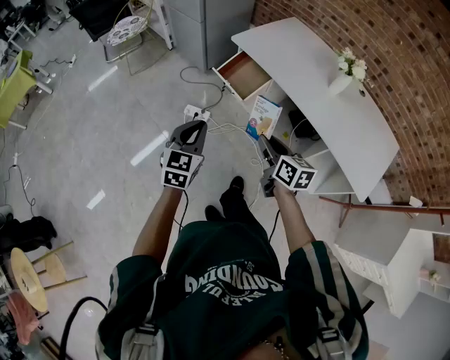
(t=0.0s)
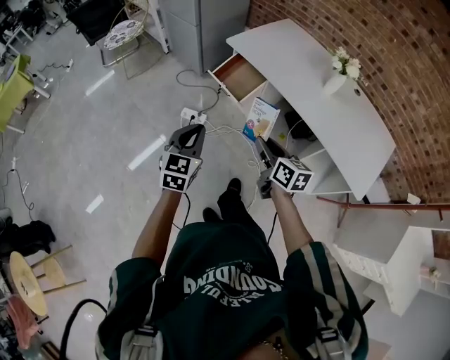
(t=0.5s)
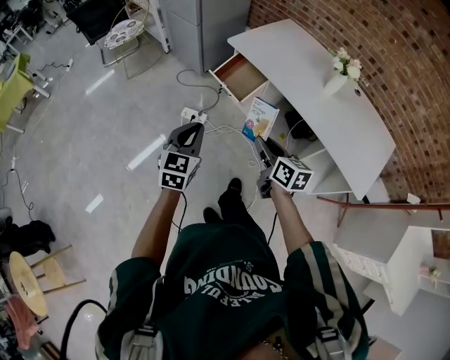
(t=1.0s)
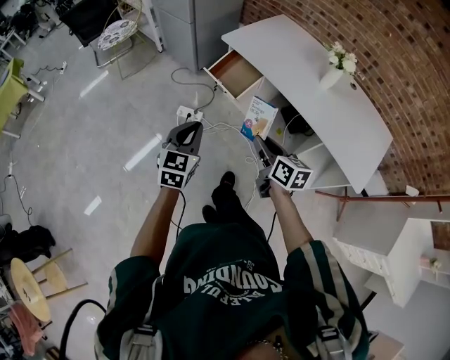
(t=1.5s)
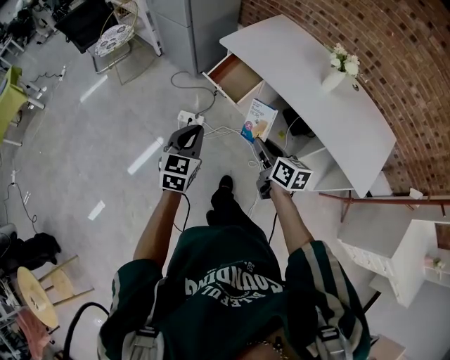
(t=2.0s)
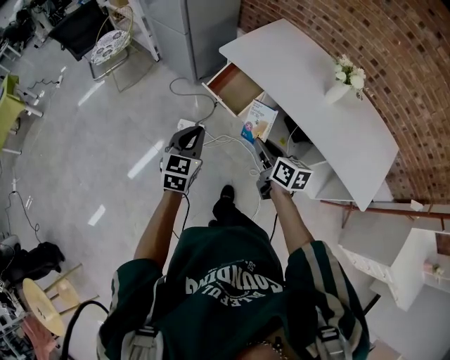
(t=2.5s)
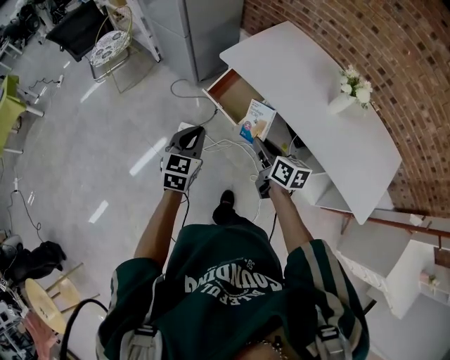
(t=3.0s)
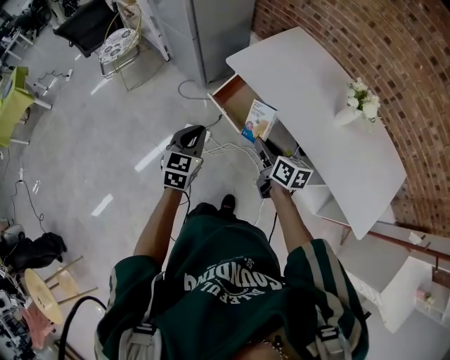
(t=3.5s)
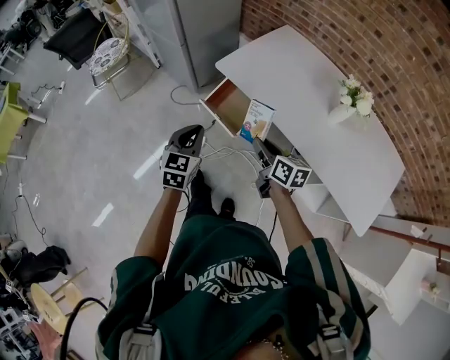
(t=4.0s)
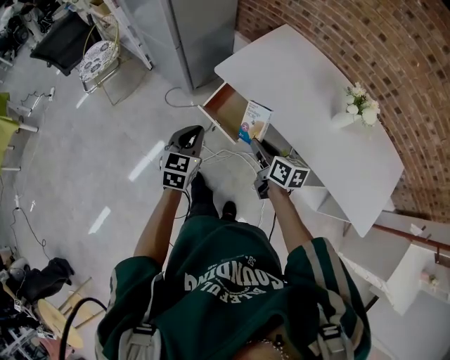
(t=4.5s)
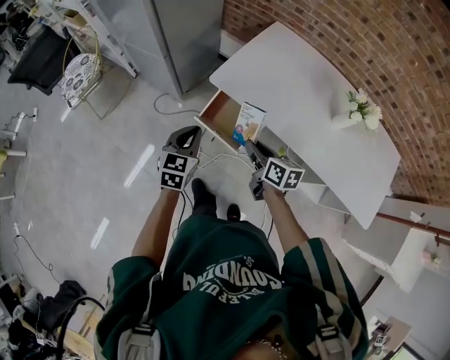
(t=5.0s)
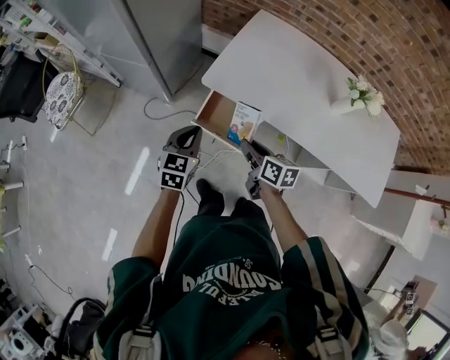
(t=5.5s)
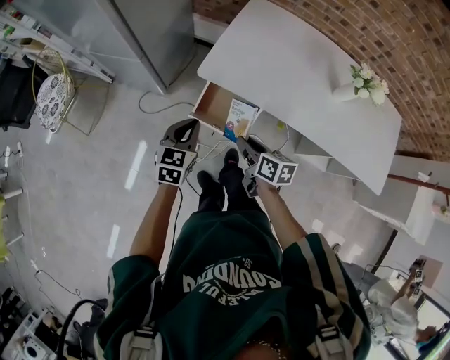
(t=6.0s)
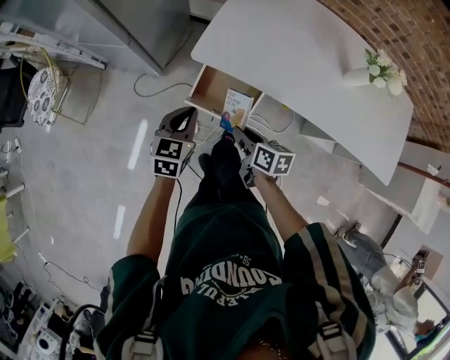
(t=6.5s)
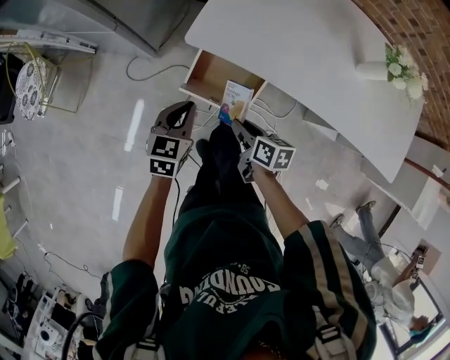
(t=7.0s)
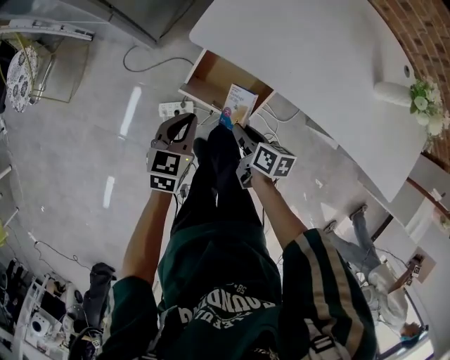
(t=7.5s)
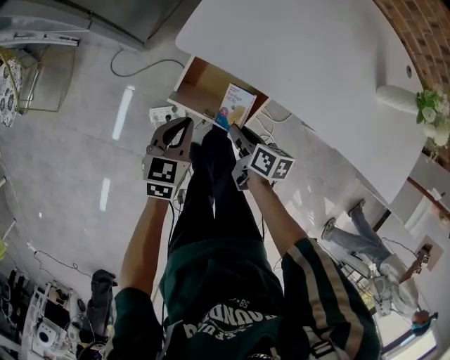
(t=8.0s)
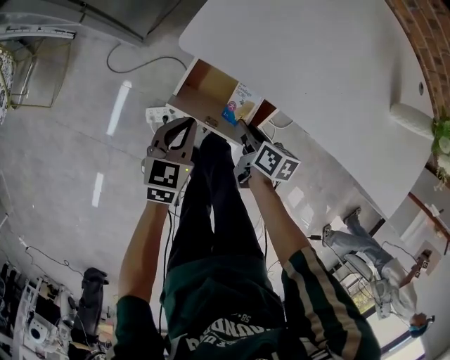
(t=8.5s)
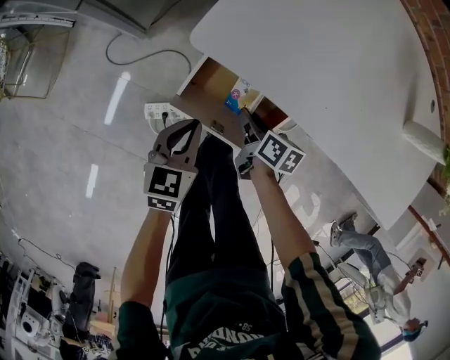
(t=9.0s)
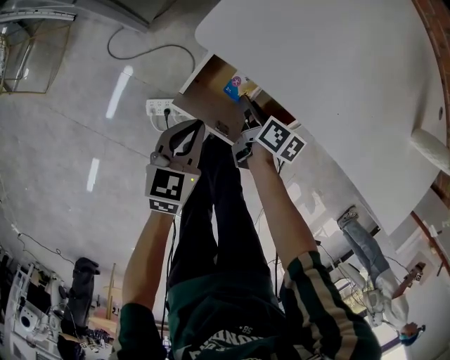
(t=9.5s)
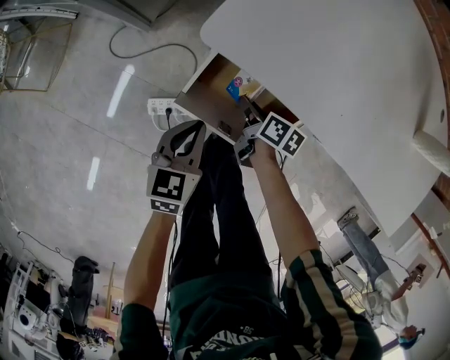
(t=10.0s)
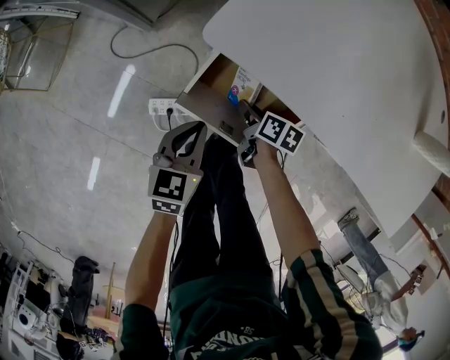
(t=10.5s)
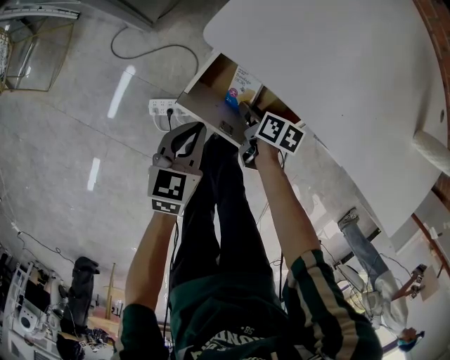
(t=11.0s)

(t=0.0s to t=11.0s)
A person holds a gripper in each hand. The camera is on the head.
t=0.0s - t=2.0s: The grippers move only a little.
t=2.0s - t=3.5s: The two grippers go about 20 cm forward.
t=3.5s - t=5.5s: The left gripper travels forward by some 20 cm, and rotates about 20 degrees, while the right gripper is displaced forward, to the left and downward by approximately 20 cm, and changes its angle by some 20 degrees.
t=5.5s - t=7.5s: Both grippers move downward, some 20 cm.
t=7.5s - t=9.0s: Both grippers move downward, some 10 cm.
t=9.0s - t=11.0s: The right gripper moves downward, about 5 cm.

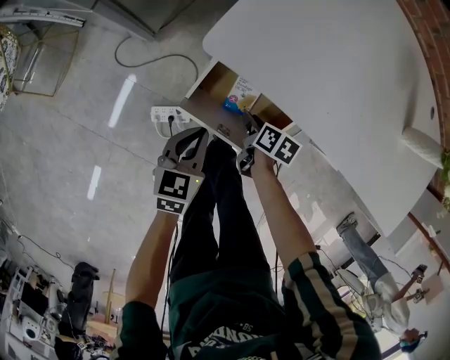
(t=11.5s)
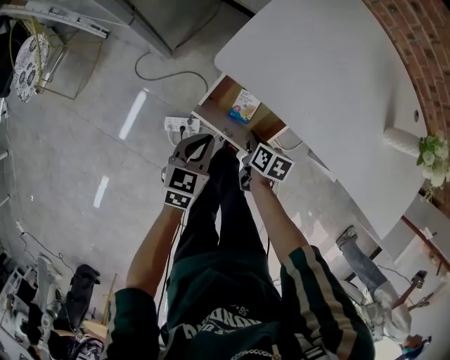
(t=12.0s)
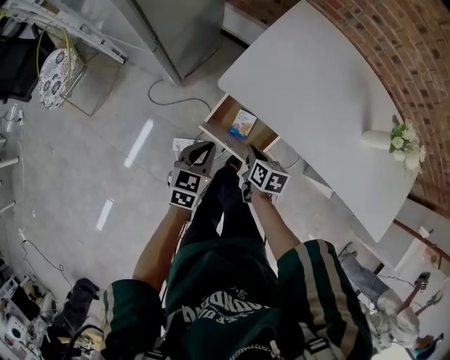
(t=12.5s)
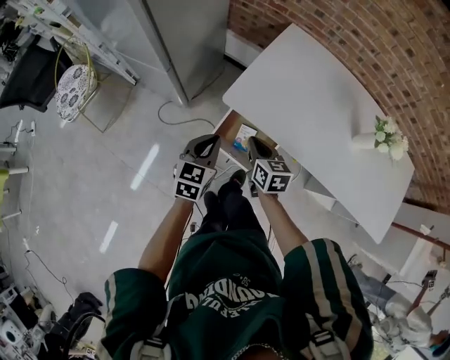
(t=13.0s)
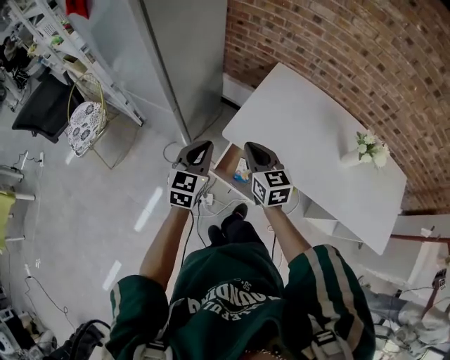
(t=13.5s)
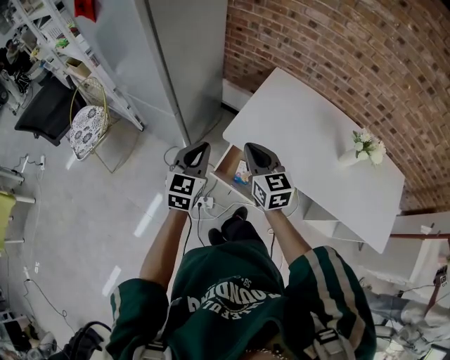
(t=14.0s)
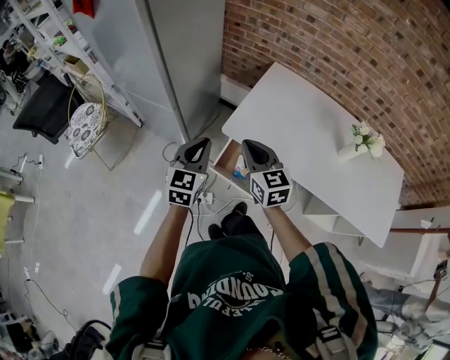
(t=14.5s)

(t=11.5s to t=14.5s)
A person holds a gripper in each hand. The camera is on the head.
t=11.5s - t=13.0s: The two grippers go roughly 30 cm upward. The right gripper turns by roughly 50 degrees, and closes.
t=13.0s - t=14.5s: The grippers both shift upward by roughly 15 cm. The right gripper rotates some 30 degrees.

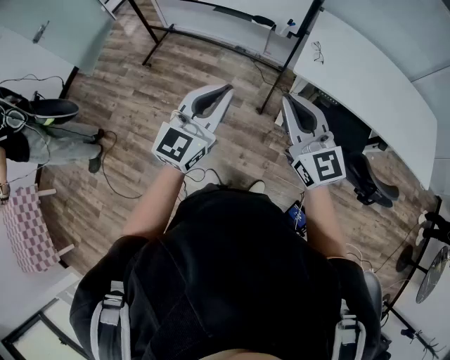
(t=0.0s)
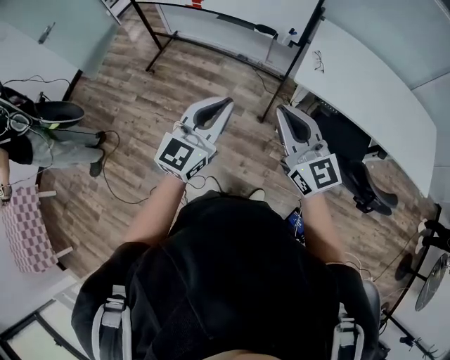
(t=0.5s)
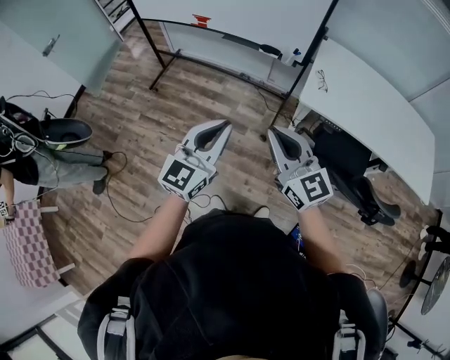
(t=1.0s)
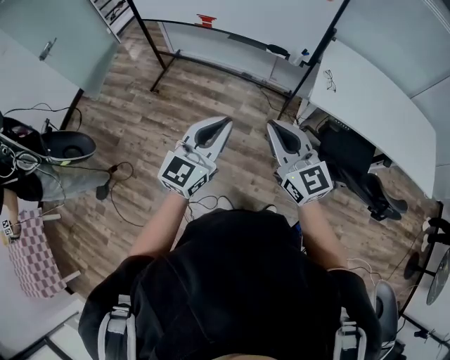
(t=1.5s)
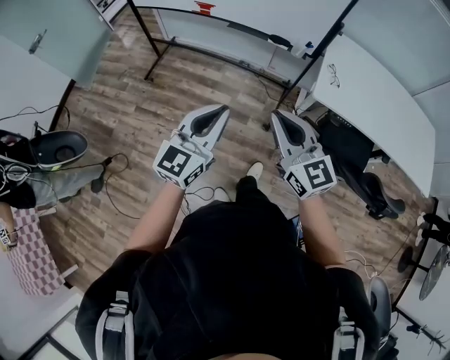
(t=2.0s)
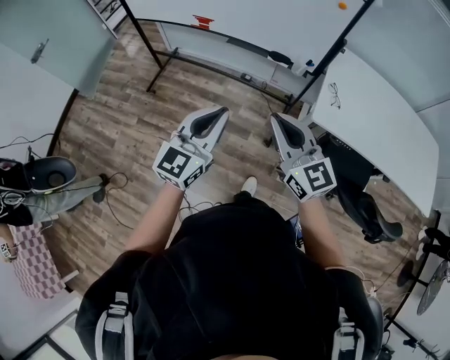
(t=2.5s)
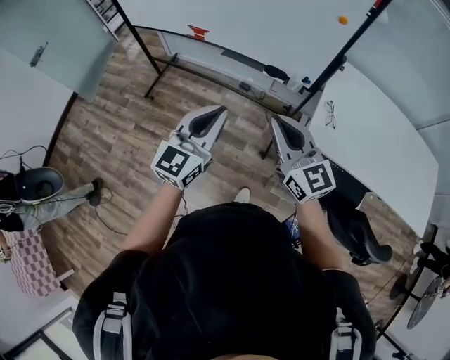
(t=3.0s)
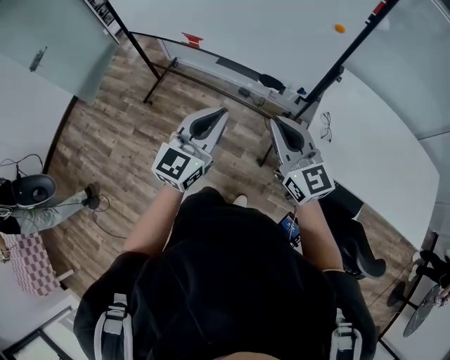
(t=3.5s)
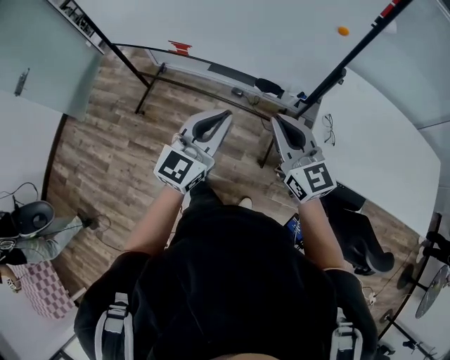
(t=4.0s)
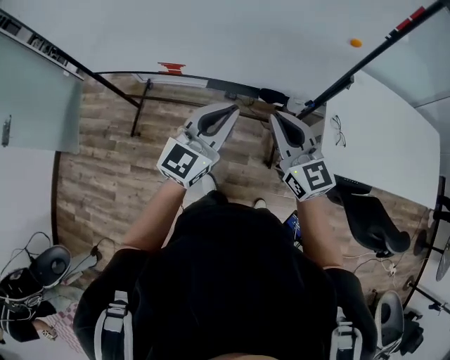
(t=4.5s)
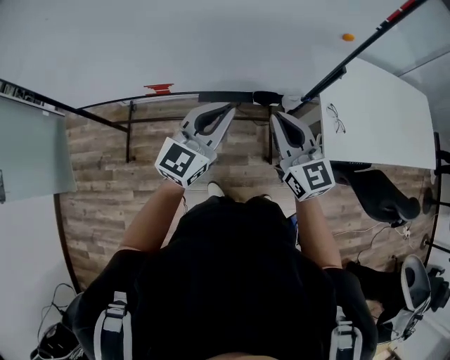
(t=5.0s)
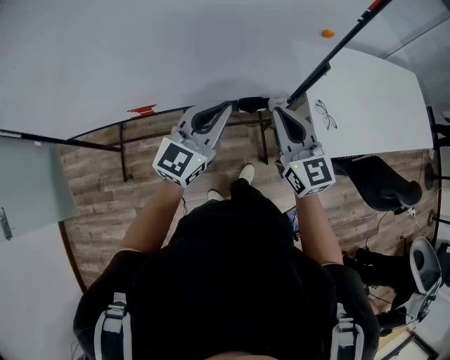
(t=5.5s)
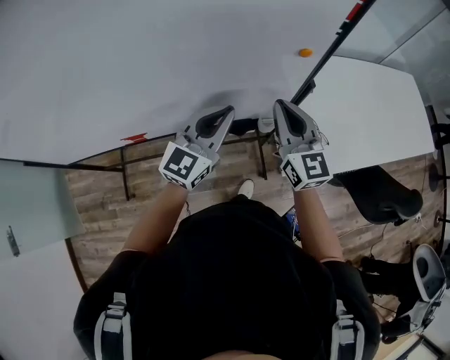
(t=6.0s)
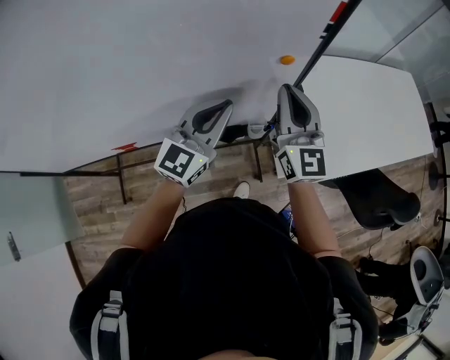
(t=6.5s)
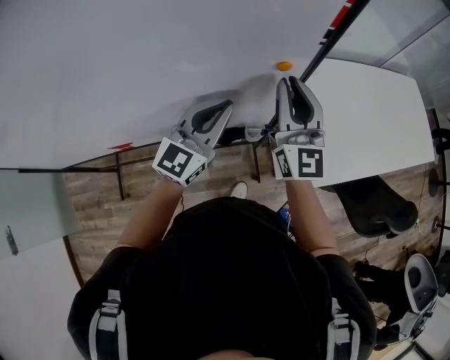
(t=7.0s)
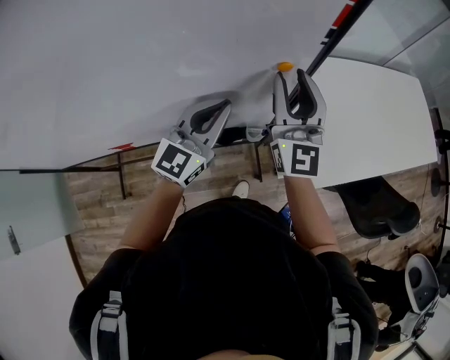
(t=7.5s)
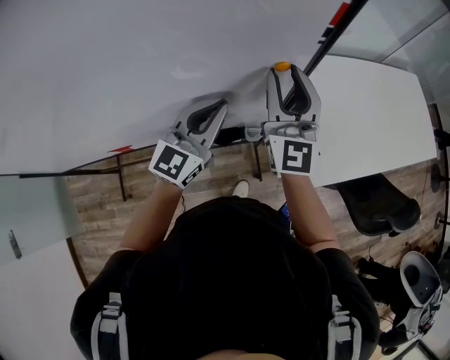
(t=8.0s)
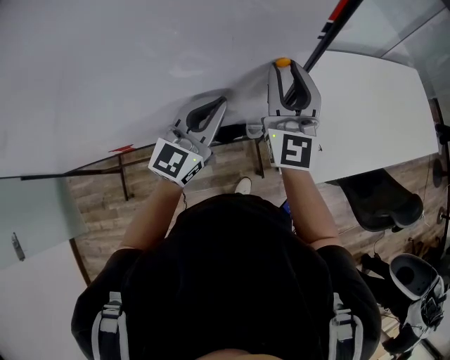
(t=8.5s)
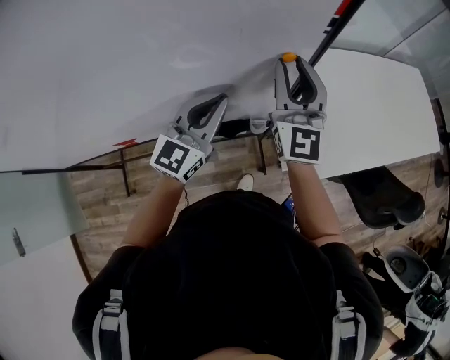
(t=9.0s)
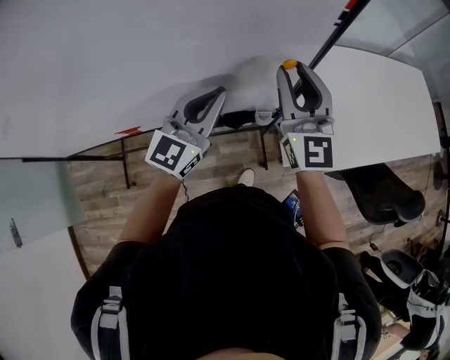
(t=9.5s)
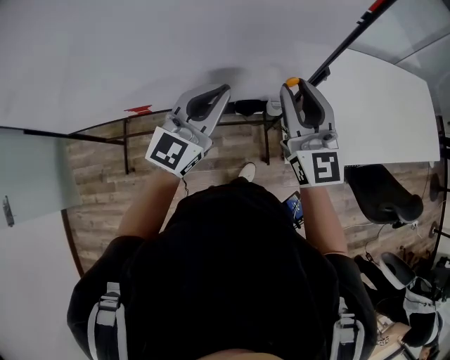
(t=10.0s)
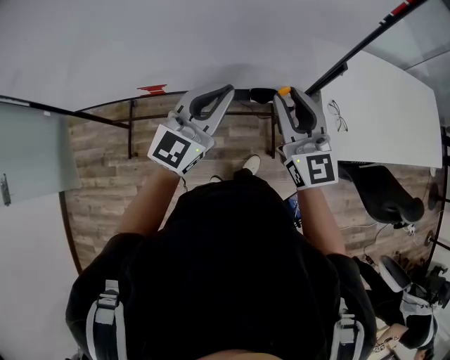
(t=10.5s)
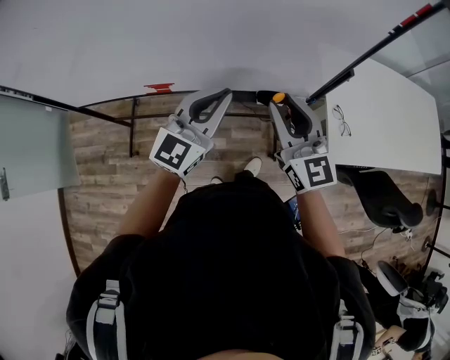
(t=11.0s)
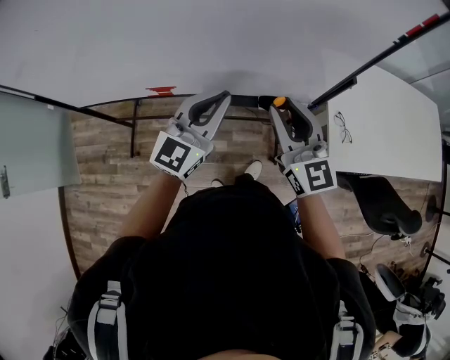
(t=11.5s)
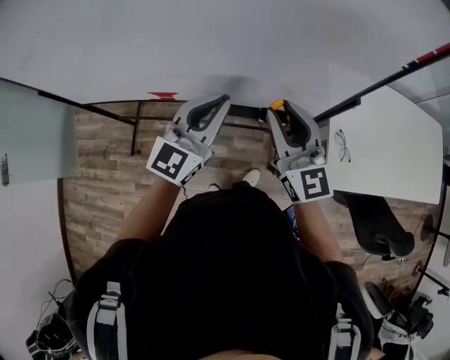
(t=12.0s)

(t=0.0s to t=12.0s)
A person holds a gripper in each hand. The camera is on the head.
t=0.0s - t=2.0s: Both grippers move to the left, about 15 cm.
t=2.0s - t=4.0s: Both grippers travel together forward, some 30 cm.
t=4.0s - t=6.0s: The right gripper changes place by about 20 cm, and rotates approximately 40 degrees; the left gripper moves approximately 25 cm, and swivels some 30 degrees.
t=6.0s - t=8.0s: The left gripper heads forward, covering roughly 10 cm. The right gripper shifts roughly 15 cm forward and upward, turns by approximately 20 degrees, and opens its fingers.
t=8.0s - t=10.0s: The left gripper travels backward and to the left by some 15 cm, while the right gripper goes about 15 cm backward.
t=10.0s - t=12.0s: The two grippers go approximately 10 cm to the left.

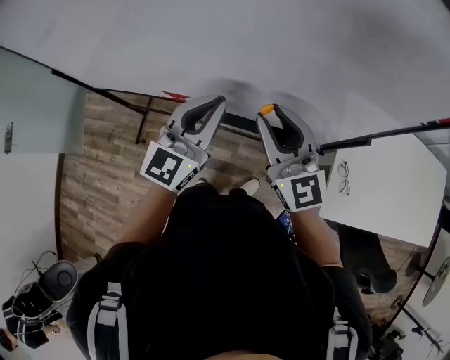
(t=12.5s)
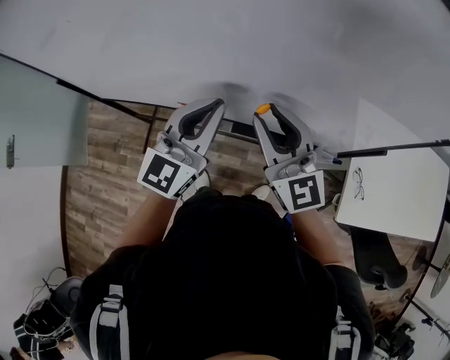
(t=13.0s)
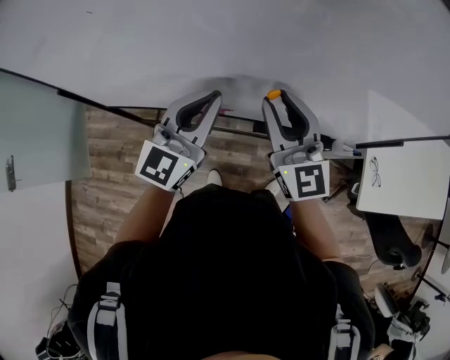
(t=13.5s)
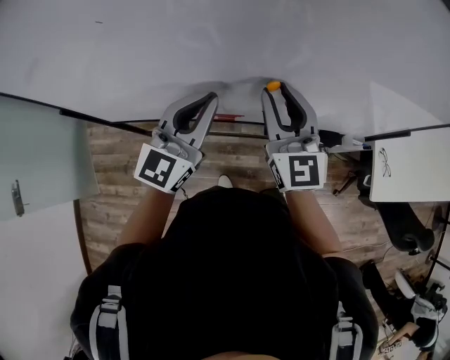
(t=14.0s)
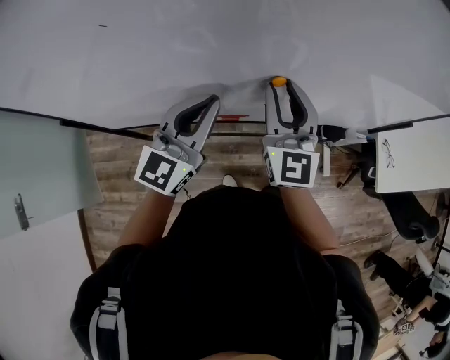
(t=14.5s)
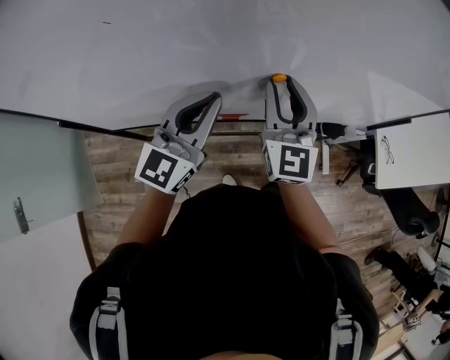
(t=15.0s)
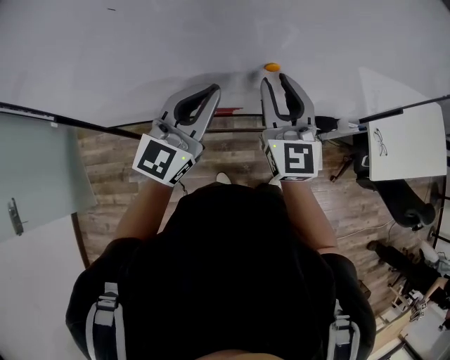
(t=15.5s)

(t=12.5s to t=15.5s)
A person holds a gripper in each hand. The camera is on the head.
t=12.5s - t=14.0s: The grippers both shift to the left by roughly 25 cm. The right gripper swivels about 20 degrees.
t=14.0s - t=15.5s: The grippers stay close to where they were, moving slightly.
